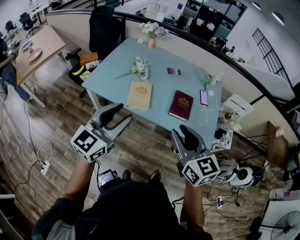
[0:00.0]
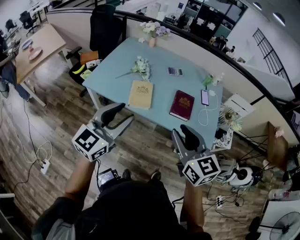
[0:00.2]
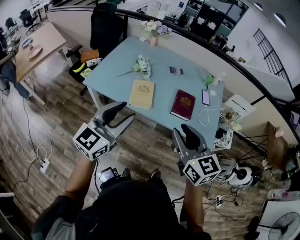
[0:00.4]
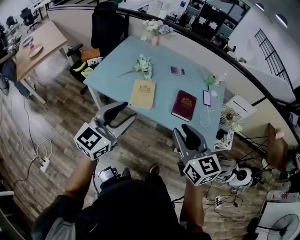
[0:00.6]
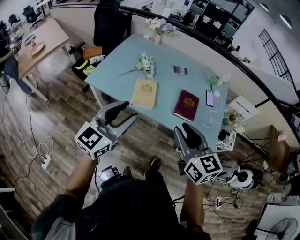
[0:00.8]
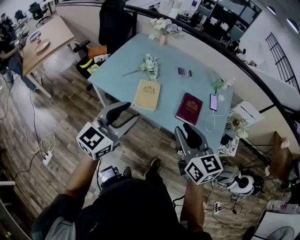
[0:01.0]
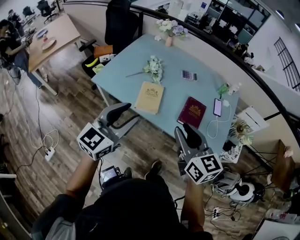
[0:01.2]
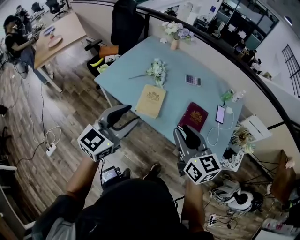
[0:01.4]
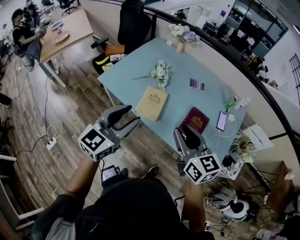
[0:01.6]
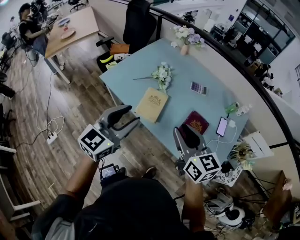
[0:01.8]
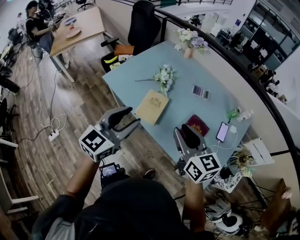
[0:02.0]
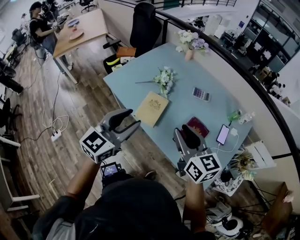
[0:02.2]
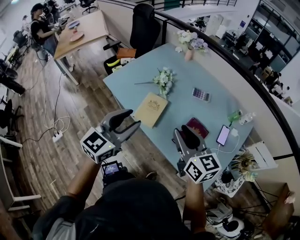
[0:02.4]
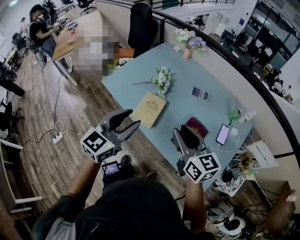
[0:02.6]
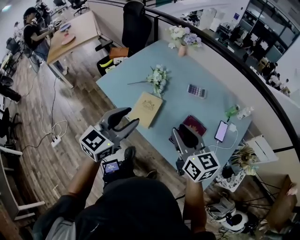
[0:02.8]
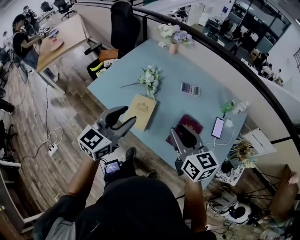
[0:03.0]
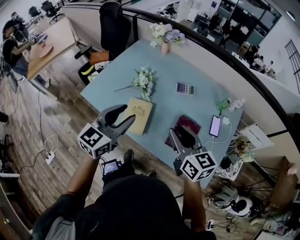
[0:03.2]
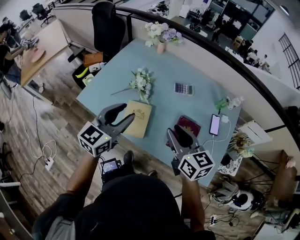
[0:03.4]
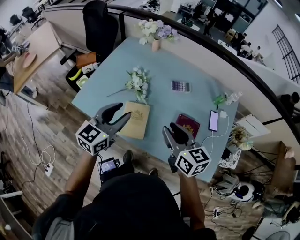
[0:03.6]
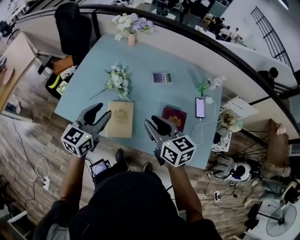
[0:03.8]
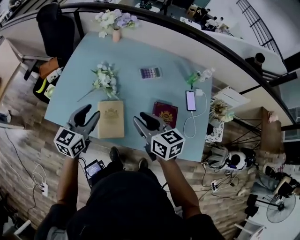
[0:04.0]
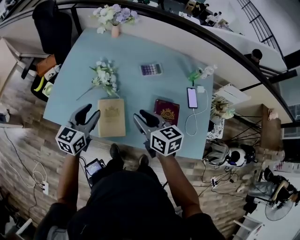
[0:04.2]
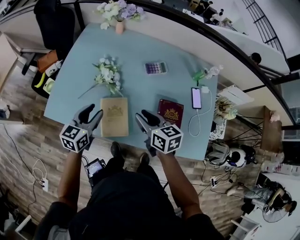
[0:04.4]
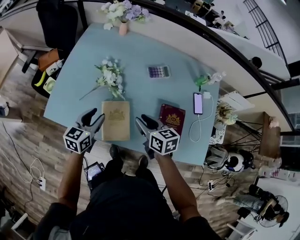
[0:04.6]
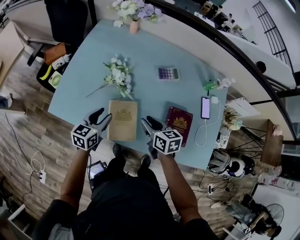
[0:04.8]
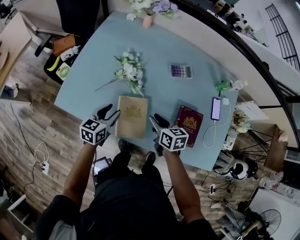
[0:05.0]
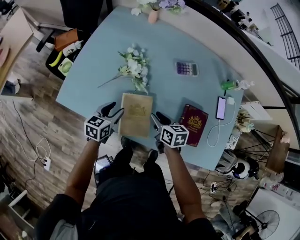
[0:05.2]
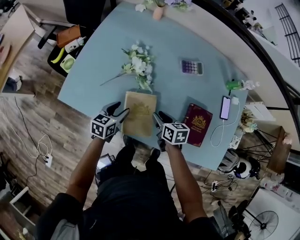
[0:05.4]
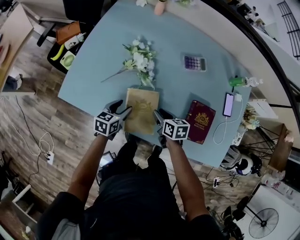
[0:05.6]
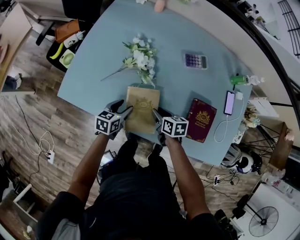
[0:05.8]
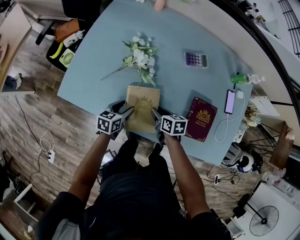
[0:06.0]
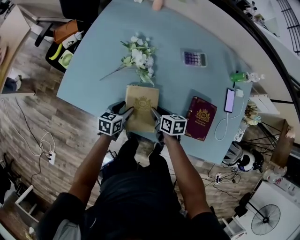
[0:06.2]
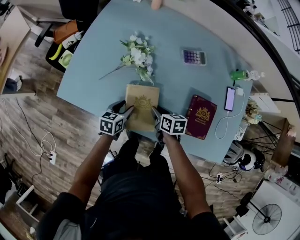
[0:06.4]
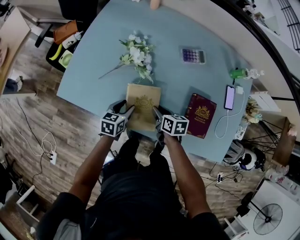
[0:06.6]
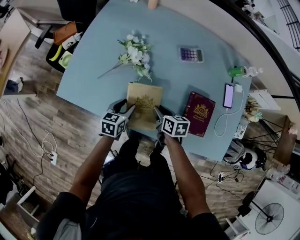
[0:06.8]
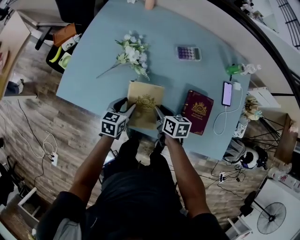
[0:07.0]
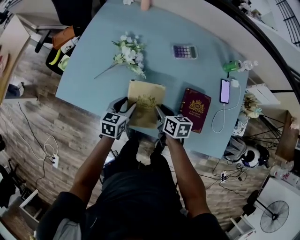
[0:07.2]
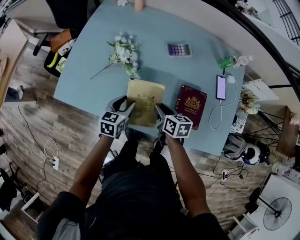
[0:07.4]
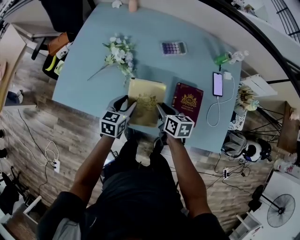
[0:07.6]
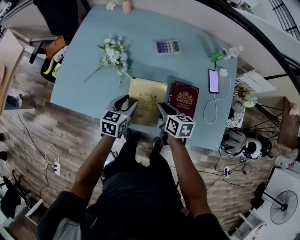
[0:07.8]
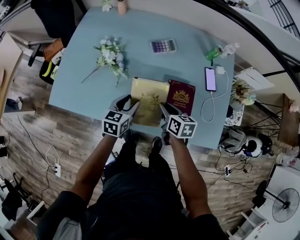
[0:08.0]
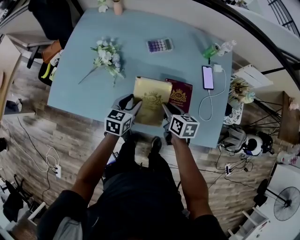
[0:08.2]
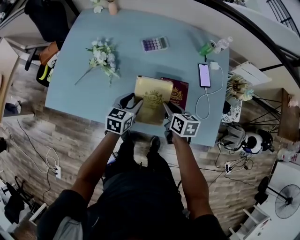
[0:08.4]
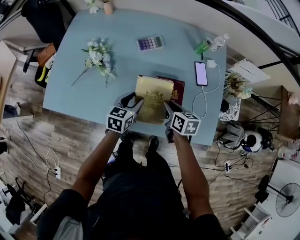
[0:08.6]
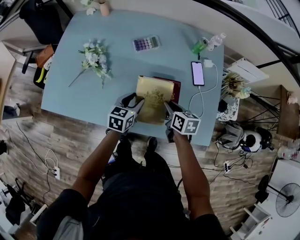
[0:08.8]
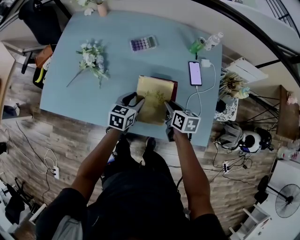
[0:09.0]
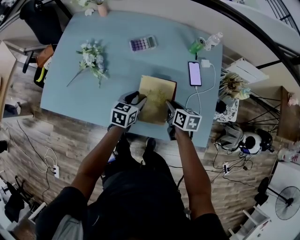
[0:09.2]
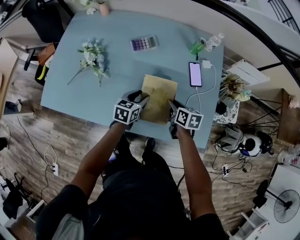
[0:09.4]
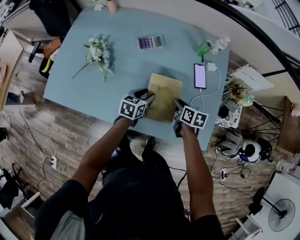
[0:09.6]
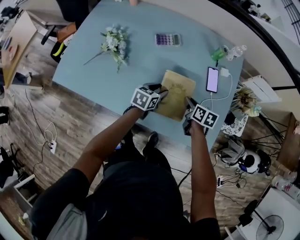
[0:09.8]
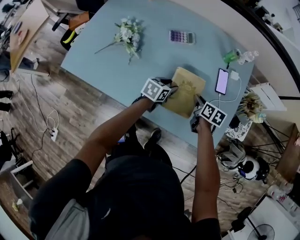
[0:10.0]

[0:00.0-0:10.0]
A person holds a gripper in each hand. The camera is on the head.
0:00.0 to 0:01.4: The grippers both shift forward by some 10 cm.
0:01.4 to 0:02.8: The right gripper goes approximately 15 cm forward and to the right. Meanwhile the left gripper goes some 10 cm to the right and forward.
0:02.8 to 0:04.2: Both grippers travel together forward, downward and to the left, roughly 20 cm. The left gripper changes its angle by approximately 20 degrees. The right gripper rotates roughly 30 degrees.
0:04.2 to 0:05.8: The grippers both shift downward by some 25 cm. The right gripper turns by roughly 30 degrees, while the left gripper swivels roughly 30 degrees.
0:05.8 to 0:07.2: The right gripper travels upward and to the right by approximately 10 cm. The left gripper moves to the right and upward, about 10 cm.
0:07.2 to 0:08.6: The grippers both shift to the right by some 20 cm.
0:08.6 to 0:10.0: Both grippers travel together to the right and downward, some 10 cm.

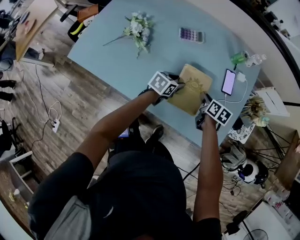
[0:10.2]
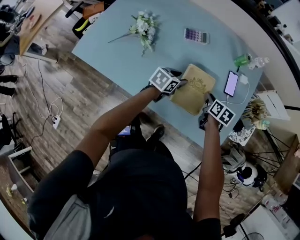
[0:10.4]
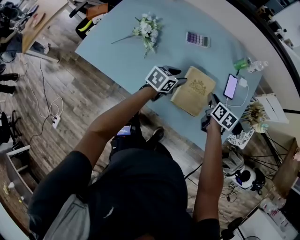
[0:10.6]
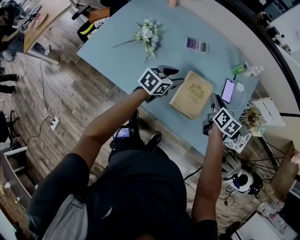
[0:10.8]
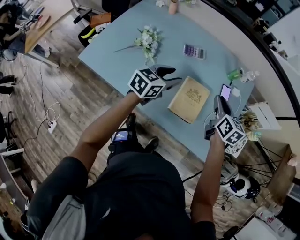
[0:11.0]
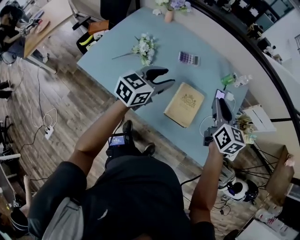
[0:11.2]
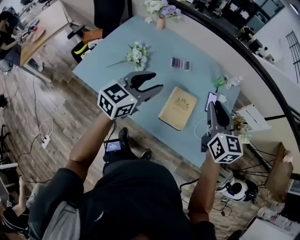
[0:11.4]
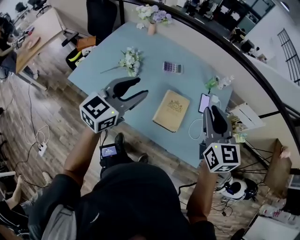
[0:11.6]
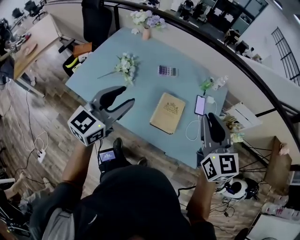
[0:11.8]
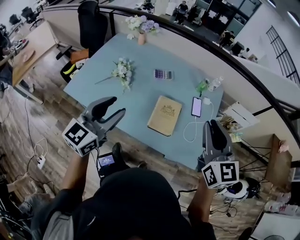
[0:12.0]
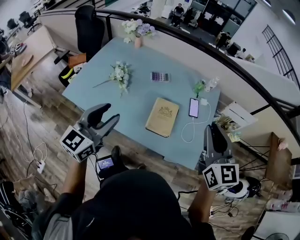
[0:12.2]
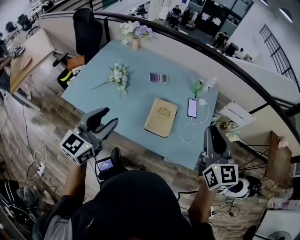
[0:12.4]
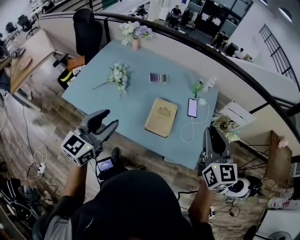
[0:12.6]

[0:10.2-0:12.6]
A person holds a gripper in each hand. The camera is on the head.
0:10.2 to 0:11.4: Both grippers move upward, about 35 cm. The left gripper turns by some 40 degrees. The right gripper points its fingers some 30 degrees further upward.
0:11.4 to 0:12.6: The left gripper goes some 15 cm backward; the right gripper heads backward, to the right and upward, covering about 15 cm.

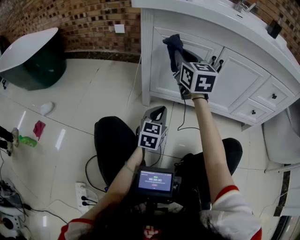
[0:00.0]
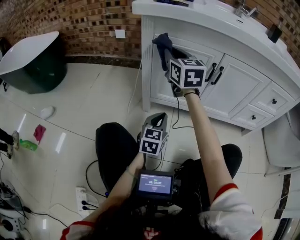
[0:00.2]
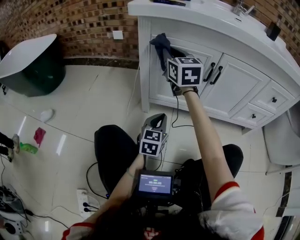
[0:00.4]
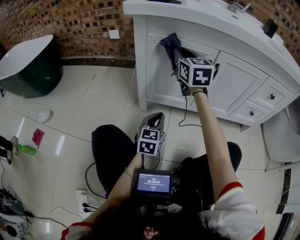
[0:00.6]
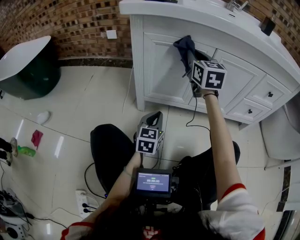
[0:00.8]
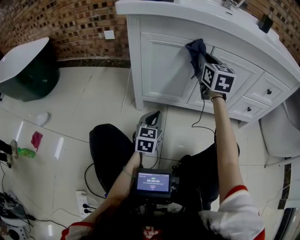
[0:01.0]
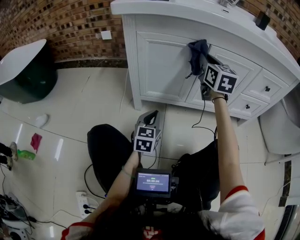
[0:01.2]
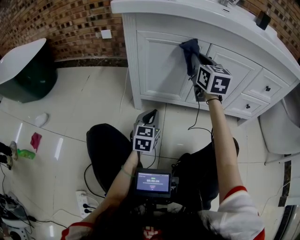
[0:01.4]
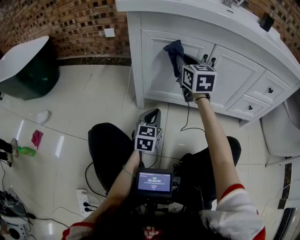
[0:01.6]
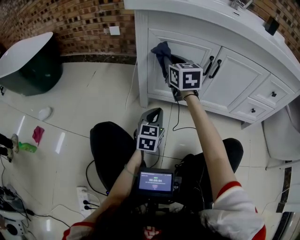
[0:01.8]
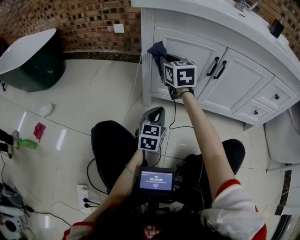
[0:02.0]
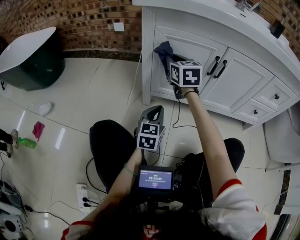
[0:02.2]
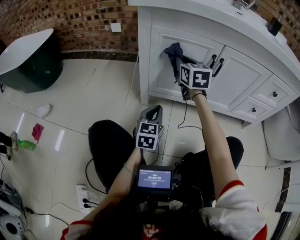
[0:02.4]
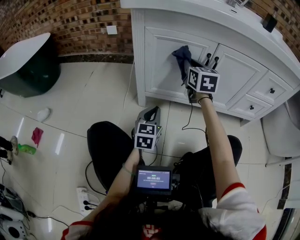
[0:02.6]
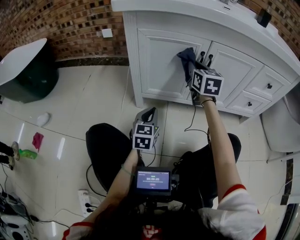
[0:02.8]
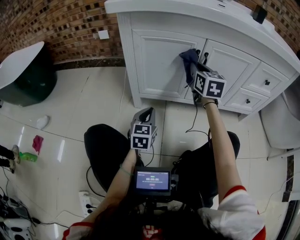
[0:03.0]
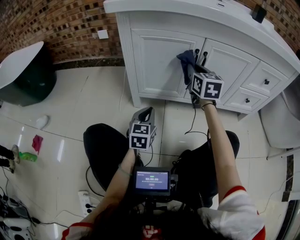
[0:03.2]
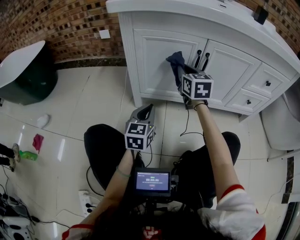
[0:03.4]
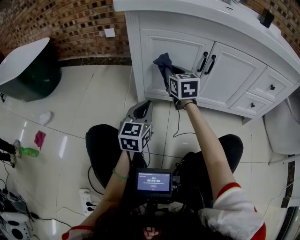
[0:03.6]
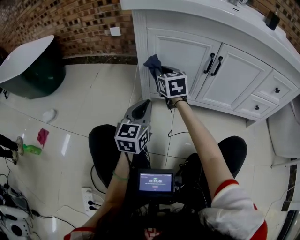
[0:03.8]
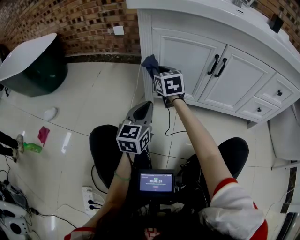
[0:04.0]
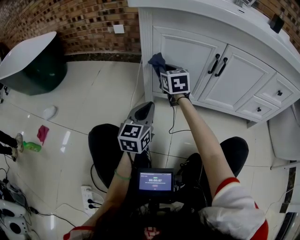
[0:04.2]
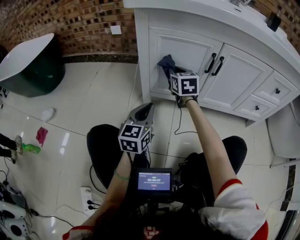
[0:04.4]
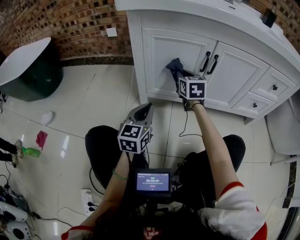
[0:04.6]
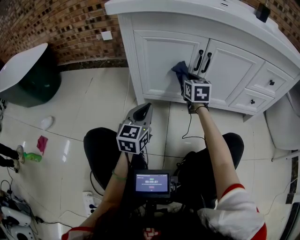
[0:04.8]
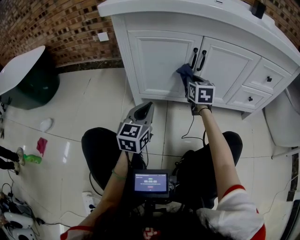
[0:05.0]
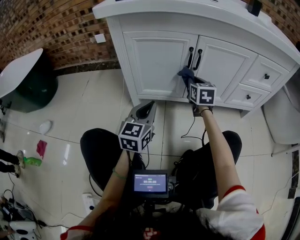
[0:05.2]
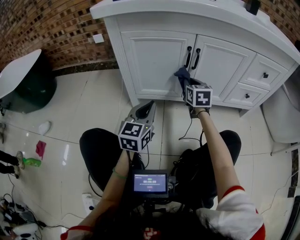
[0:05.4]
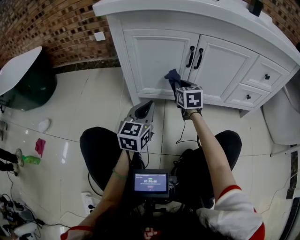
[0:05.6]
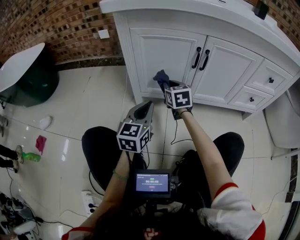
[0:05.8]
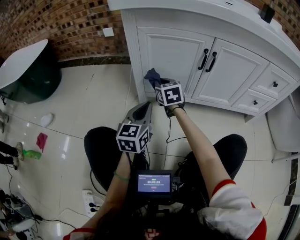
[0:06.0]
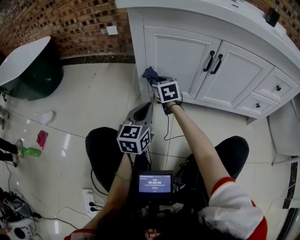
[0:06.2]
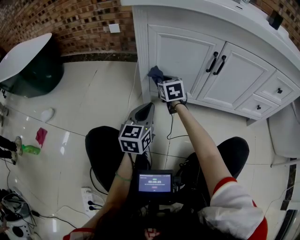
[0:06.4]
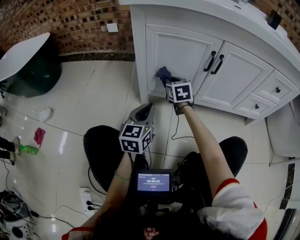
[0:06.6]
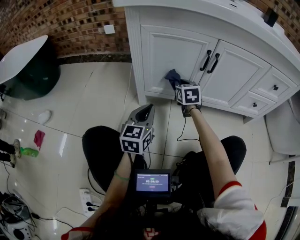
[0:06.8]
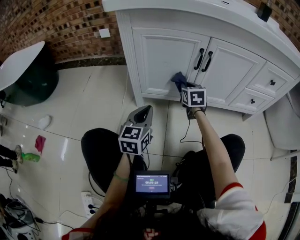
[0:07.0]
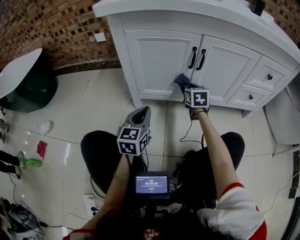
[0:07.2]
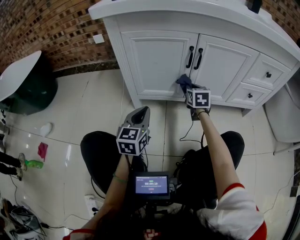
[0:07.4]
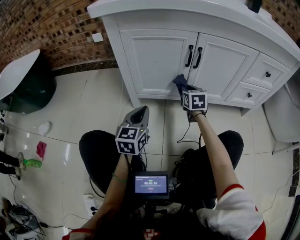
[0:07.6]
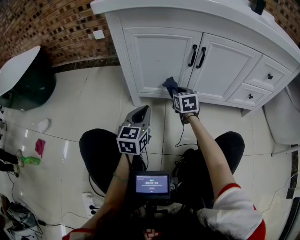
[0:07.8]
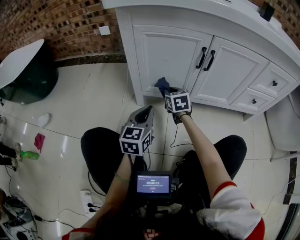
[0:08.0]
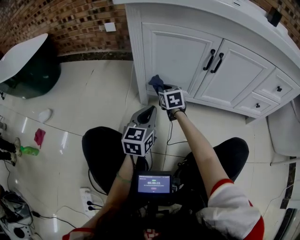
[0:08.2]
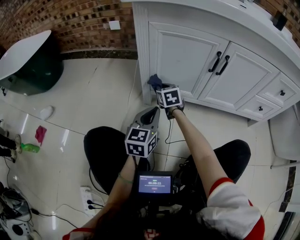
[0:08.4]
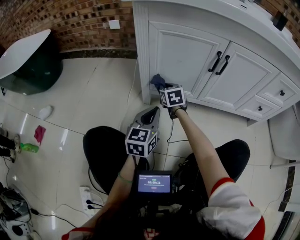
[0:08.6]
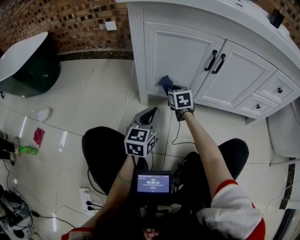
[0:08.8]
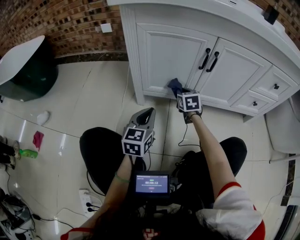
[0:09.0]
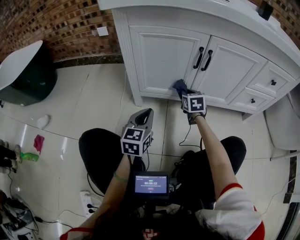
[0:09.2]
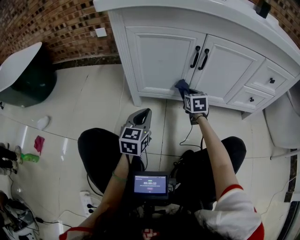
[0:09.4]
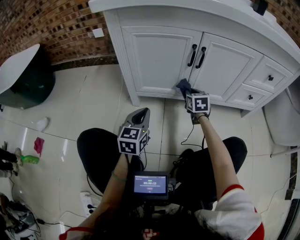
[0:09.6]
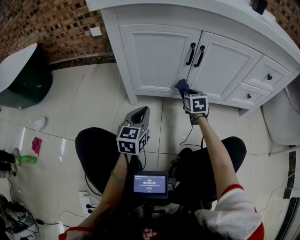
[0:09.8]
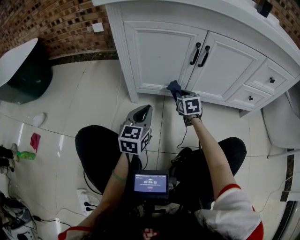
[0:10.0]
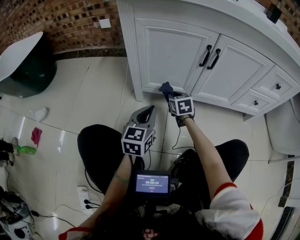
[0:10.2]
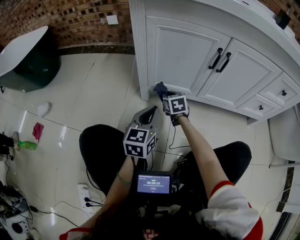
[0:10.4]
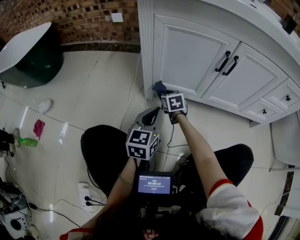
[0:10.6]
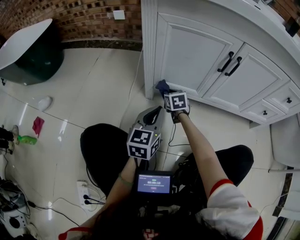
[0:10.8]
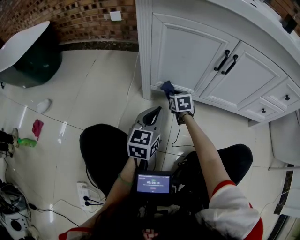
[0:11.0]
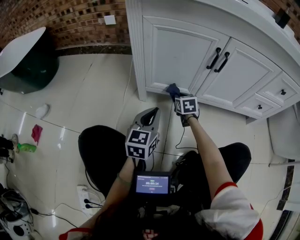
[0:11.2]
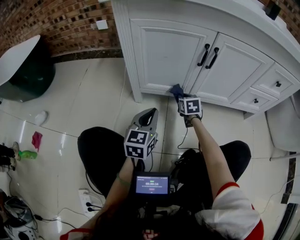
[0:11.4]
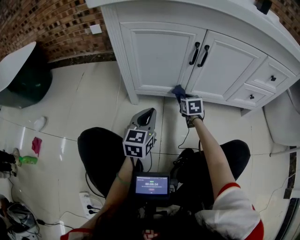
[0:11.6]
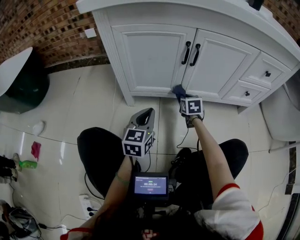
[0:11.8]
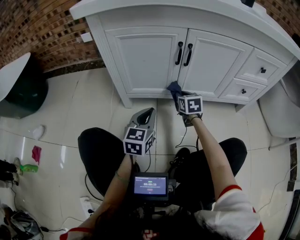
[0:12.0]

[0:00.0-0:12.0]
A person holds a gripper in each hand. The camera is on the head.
0:00.0 to 0:01.6: The right gripper goes left and right, approximately 20 cm each way, reversing 2 times.
0:01.6 to 0:03.0: The right gripper heads to the right, covering about 10 cm.
0:03.0 to 0:04.4: The right gripper is displaced to the left and downward by approximately 15 cm; the left gripper goes approximately 10 cm upward and to the left.
0:04.4 to 0:06.0: The right gripper is displaced downward by approximately 5 cm, and moves some 20 cm to the right and comes back. The left gripper travels to the right and back again, about 10 cm each way.
0:06.0 to 0:07.6: The right gripper is displaced to the right by about 20 cm.
0:07.6 to 0:09.0: The right gripper heads downward, covering some 5 cm, and goes to the left and returns, roughly 25 cm each way.
0:09.0 to 0:10.4: The right gripper travels to the left and downward by roughly 10 cm.
0:10.4 to 0:12.0: The right gripper heads to the right, covering approximately 20 cm, while the left gripper goes about 10 cm to the right.
